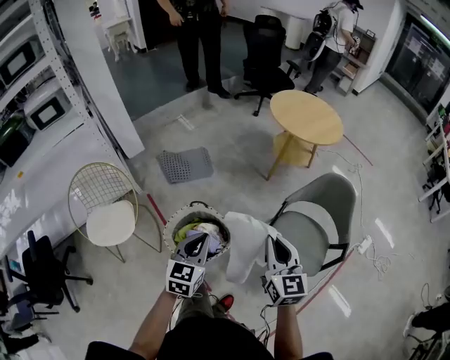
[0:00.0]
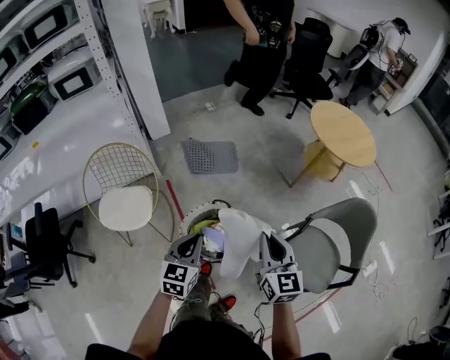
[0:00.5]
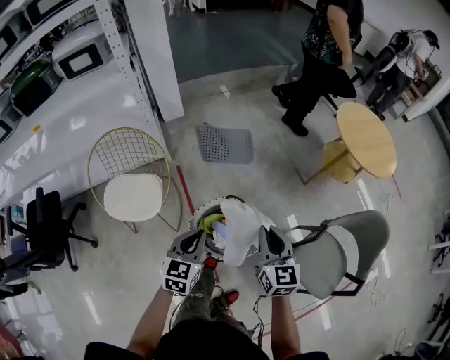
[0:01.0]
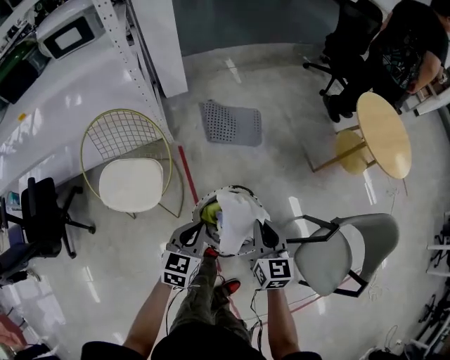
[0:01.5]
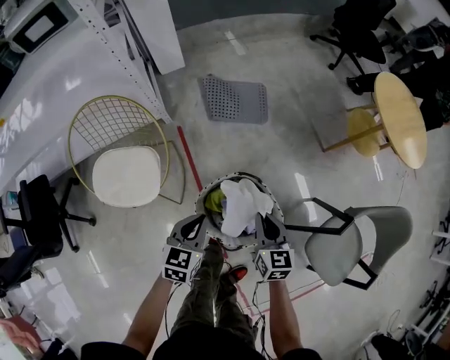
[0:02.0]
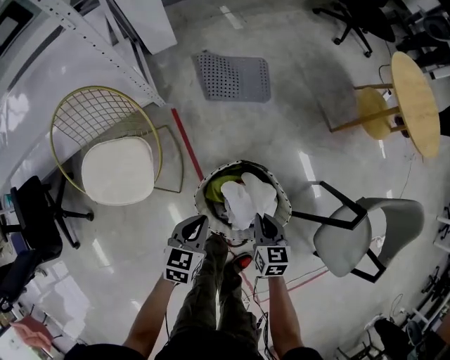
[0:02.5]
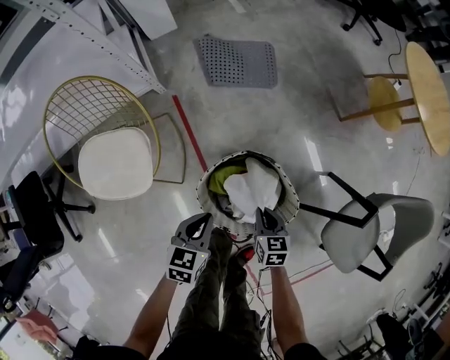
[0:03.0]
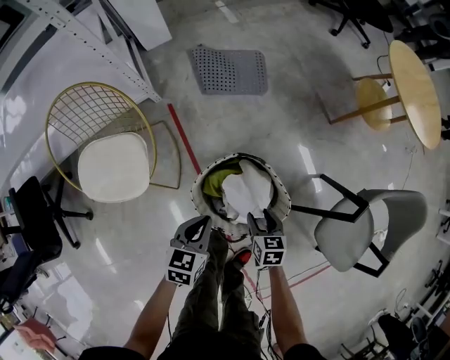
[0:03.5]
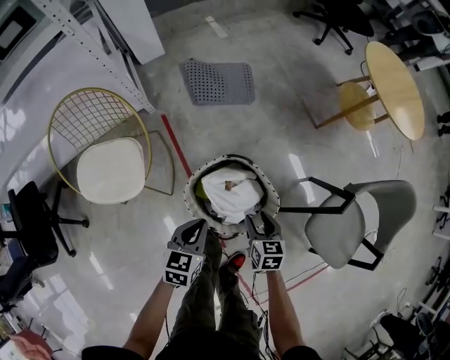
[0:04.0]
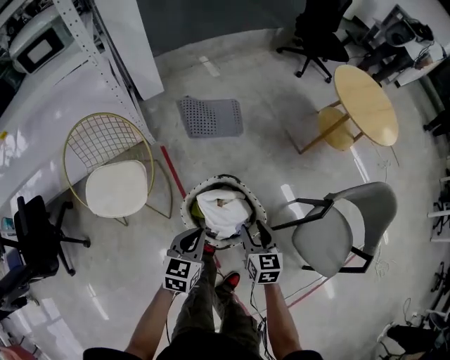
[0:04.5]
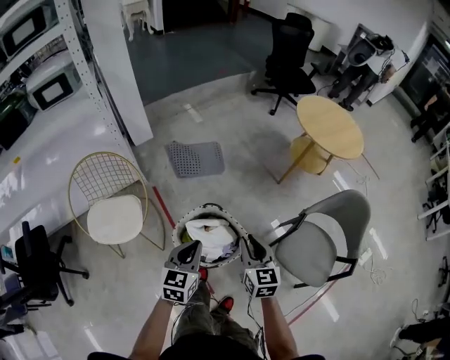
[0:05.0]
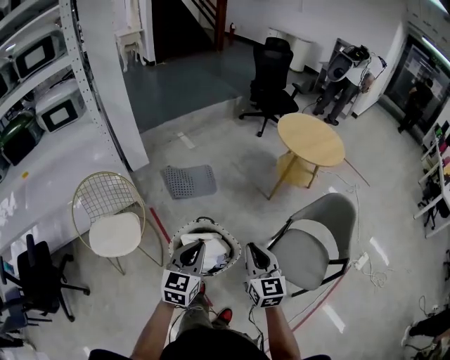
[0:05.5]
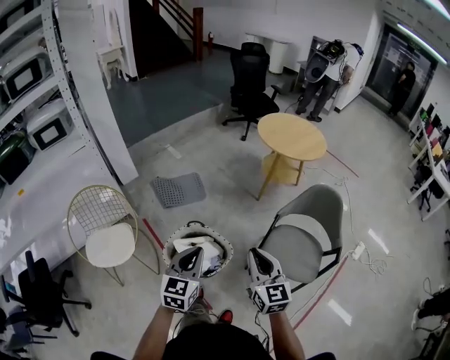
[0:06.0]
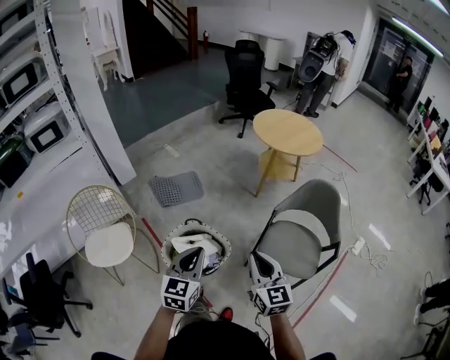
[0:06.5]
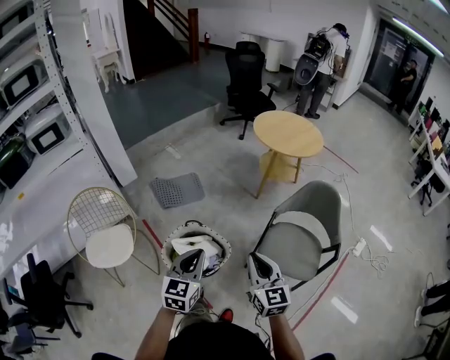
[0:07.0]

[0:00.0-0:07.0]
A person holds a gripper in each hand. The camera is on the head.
0:00.0 to 0:02.0: The left gripper shifts about 35 cm to the left, downward and forward, and turns by approximately 20 degrees, while the right gripper heads downward, to the left and forward, covering about 40 cm, and rotates about 30 degrees.
0:02.0 to 0:03.5: The left gripper shifts approximately 10 cm downward, while the right gripper is displaced downward by about 20 cm, turns by some 20 degrees, and opens its fingers.
0:03.5 to 0:05.0: Both grippers move upward, about 30 cm. The right gripper tips its fingers upward by approximately 30 degrees, and closes, while the left gripper changes its angle by roughly 20 degrees.
0:05.0 to 0:07.0: The right gripper goes about 20 cm to the right, backward and upward. The left gripper is displaced to the right, upward and backward by approximately 20 cm.

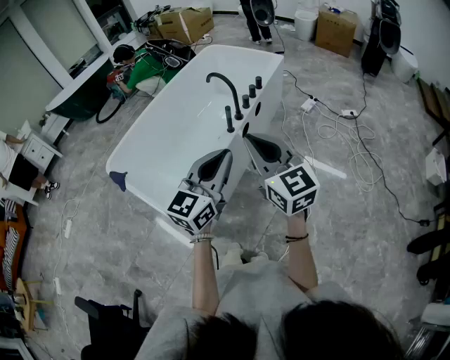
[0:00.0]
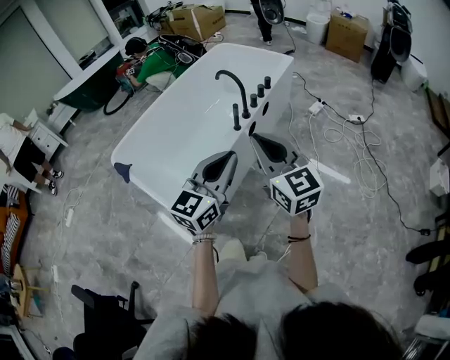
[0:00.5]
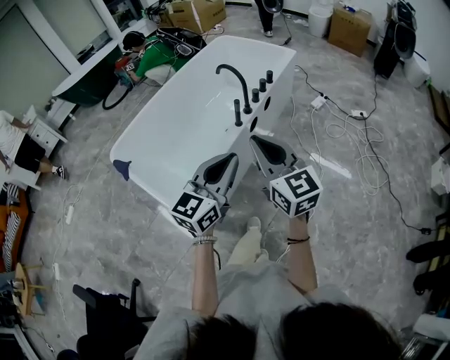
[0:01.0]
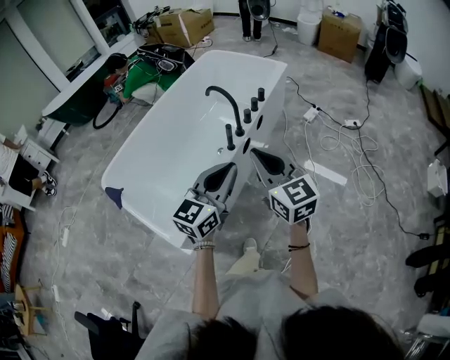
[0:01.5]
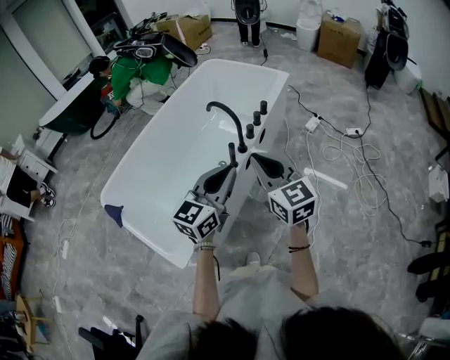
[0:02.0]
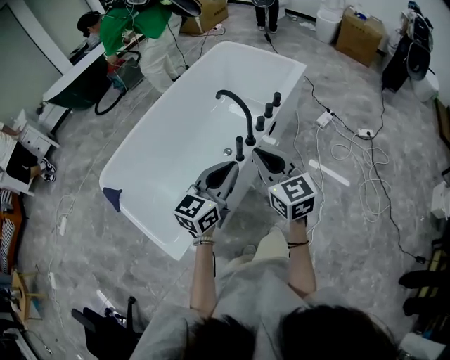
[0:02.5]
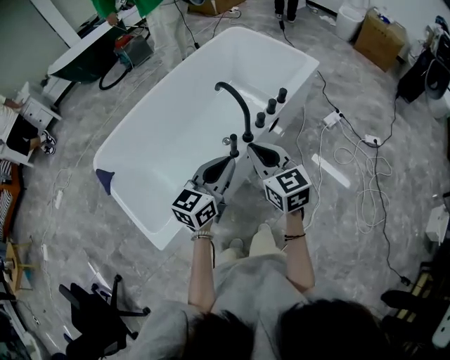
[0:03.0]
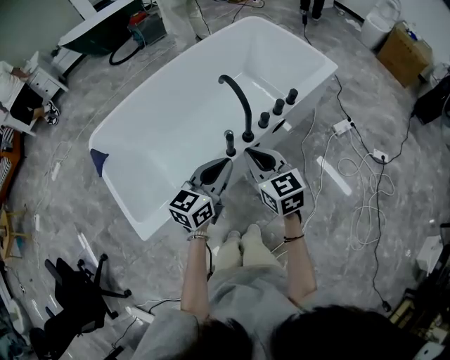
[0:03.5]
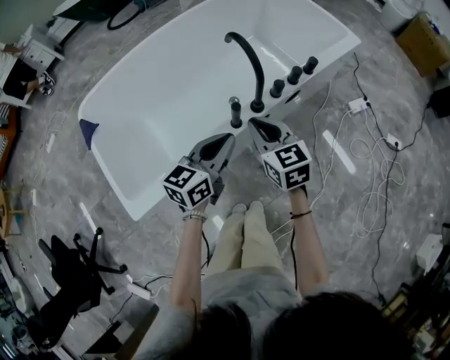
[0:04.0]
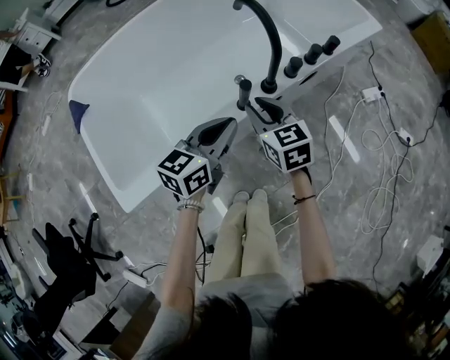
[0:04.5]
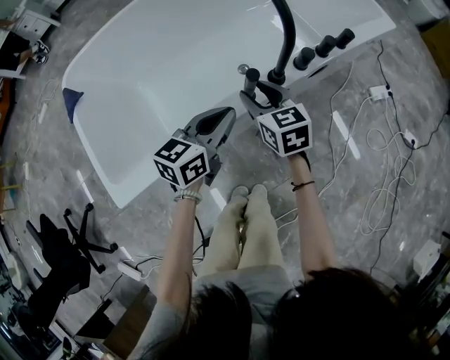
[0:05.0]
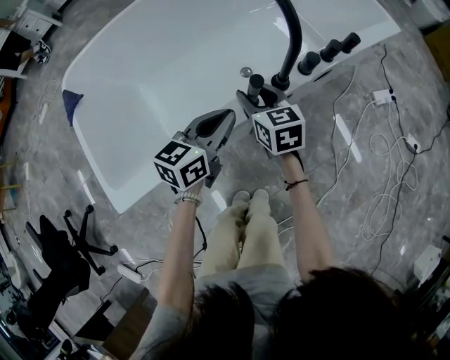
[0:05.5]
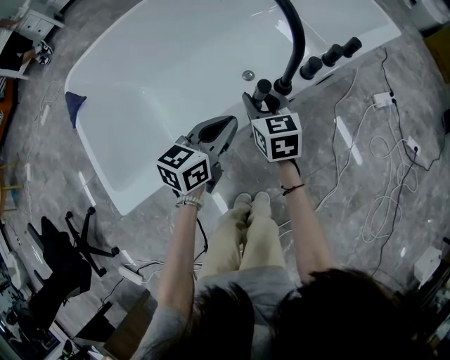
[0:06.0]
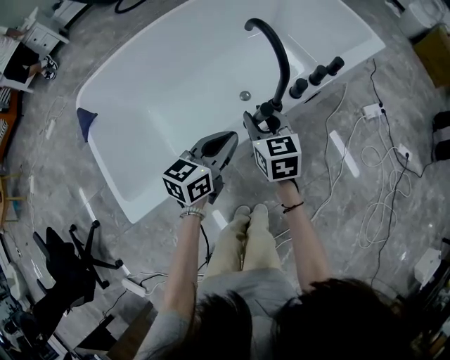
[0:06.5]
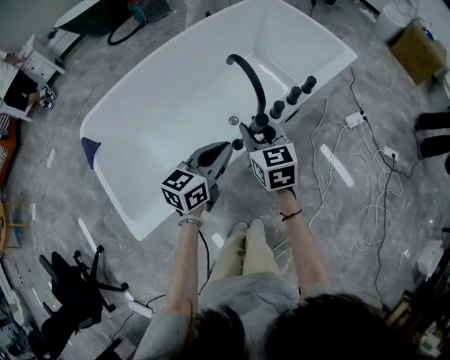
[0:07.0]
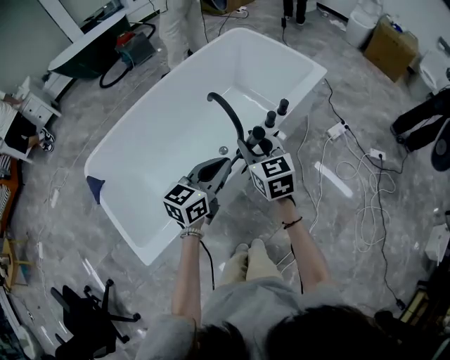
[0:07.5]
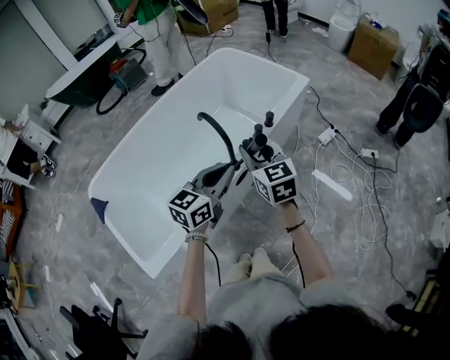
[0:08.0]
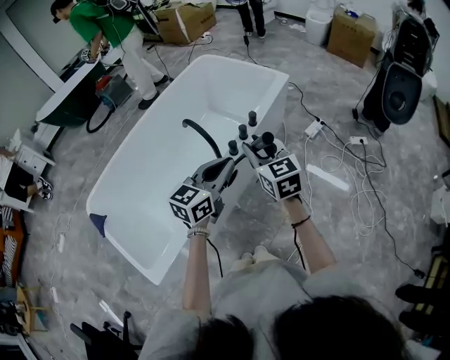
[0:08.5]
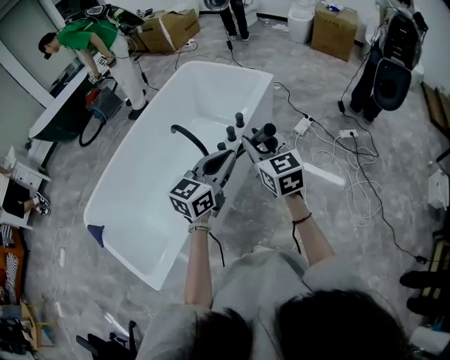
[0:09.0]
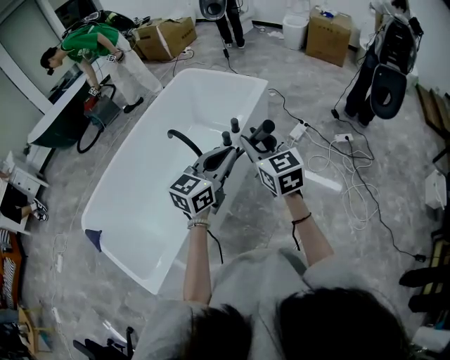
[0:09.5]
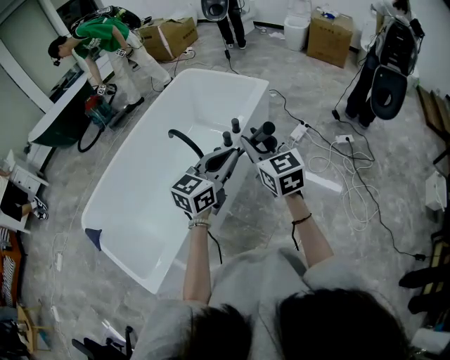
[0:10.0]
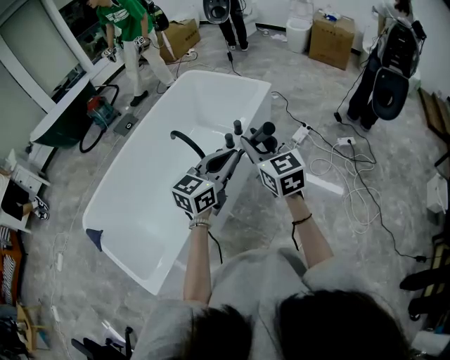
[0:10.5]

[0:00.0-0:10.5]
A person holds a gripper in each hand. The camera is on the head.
0:00.0 to 0:02.0: Both grippers travel together forward, about 20 cm.
0:02.0 to 0:04.0: The two grippers go roughly 30 cm downward and forward. The right gripper rotates roughly 30 degrees; the left gripper rotates roughly 30 degrees.
0:04.0 to 0:06.5: The left gripper heads downward, covering about 5 cm. Meanwhile the right gripper goes about 10 cm downward and forward, and opens.
0:06.5 to 0:08.5: The two grippers go approximately 30 cm upward and to the right. The left gripper swivels about 30 degrees.
0:08.5 to 0:10.5: The left gripper goes roughly 5 cm to the right; the right gripper travels upward and to the right by roughly 10 cm.

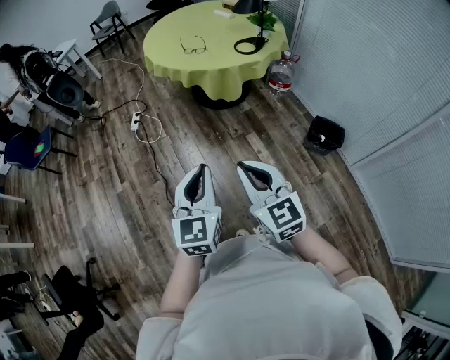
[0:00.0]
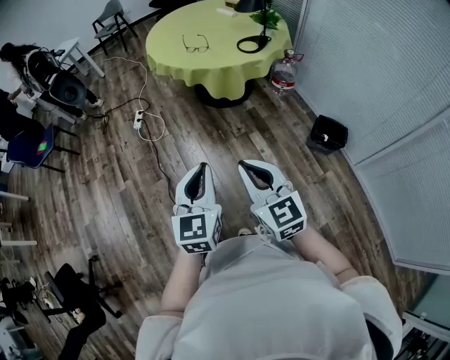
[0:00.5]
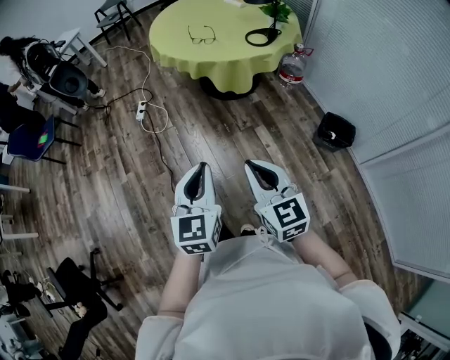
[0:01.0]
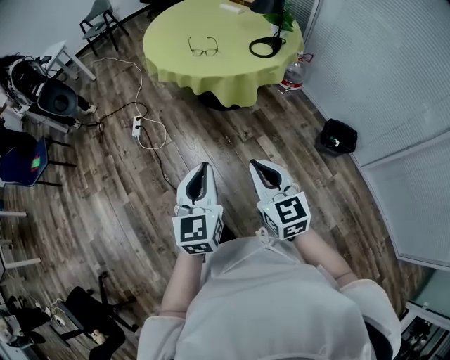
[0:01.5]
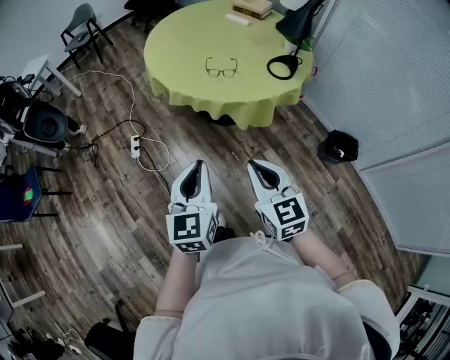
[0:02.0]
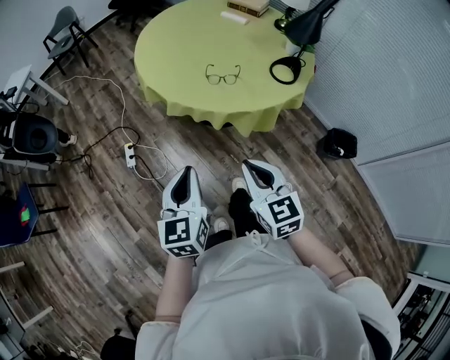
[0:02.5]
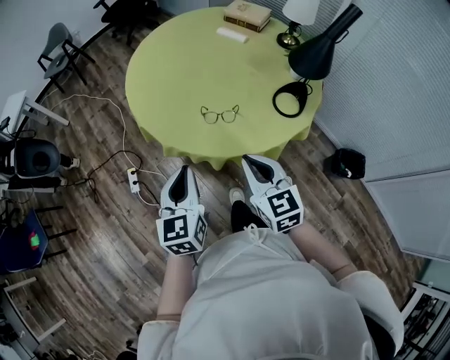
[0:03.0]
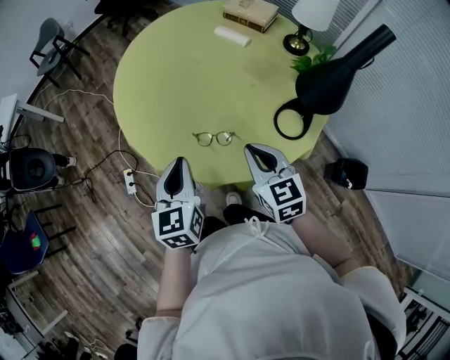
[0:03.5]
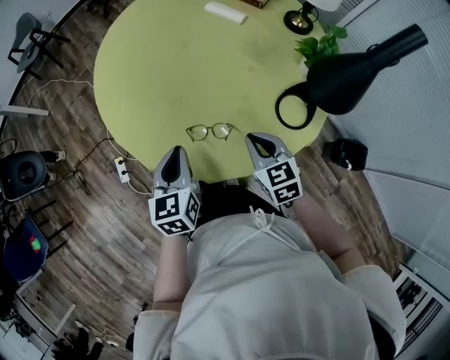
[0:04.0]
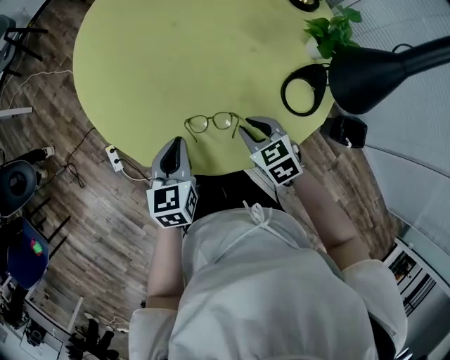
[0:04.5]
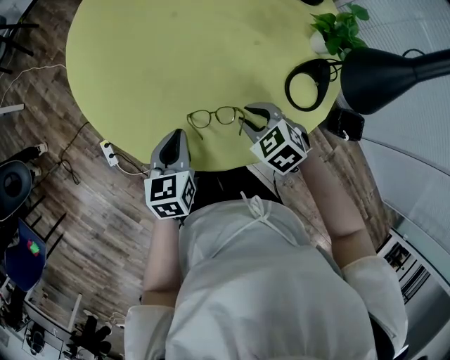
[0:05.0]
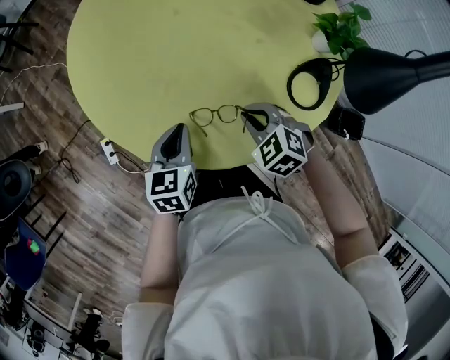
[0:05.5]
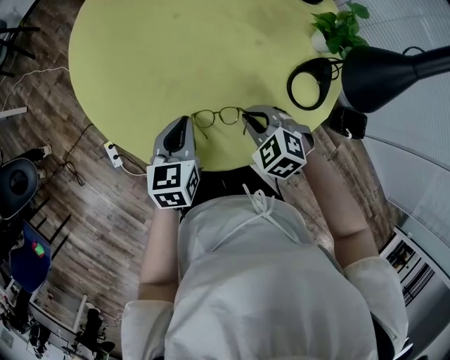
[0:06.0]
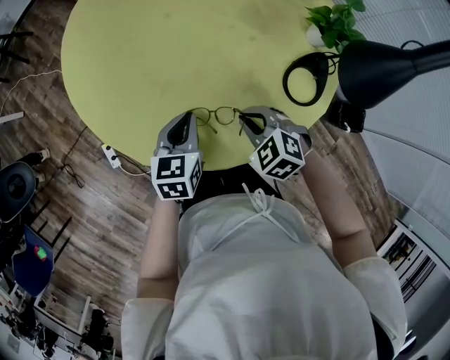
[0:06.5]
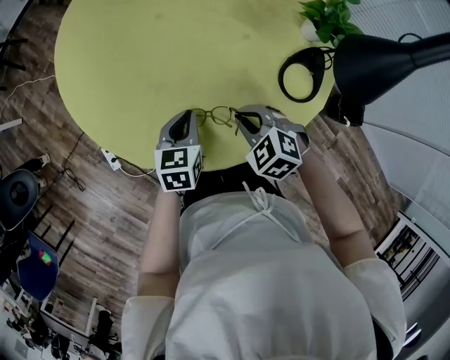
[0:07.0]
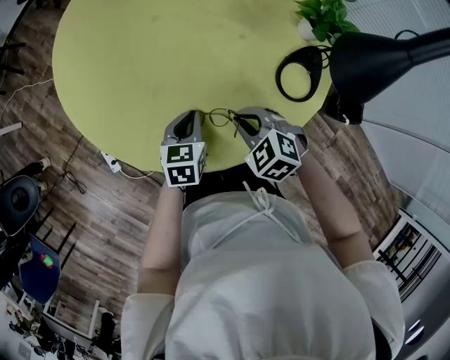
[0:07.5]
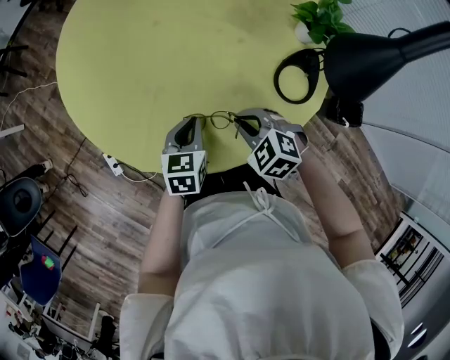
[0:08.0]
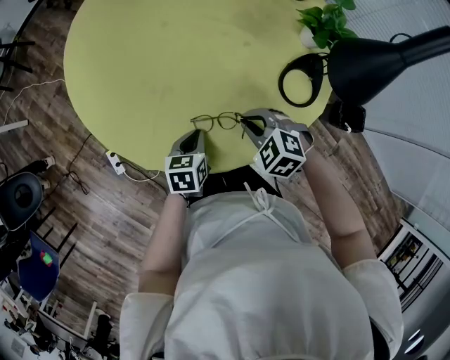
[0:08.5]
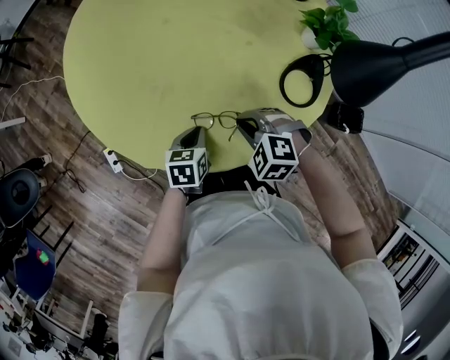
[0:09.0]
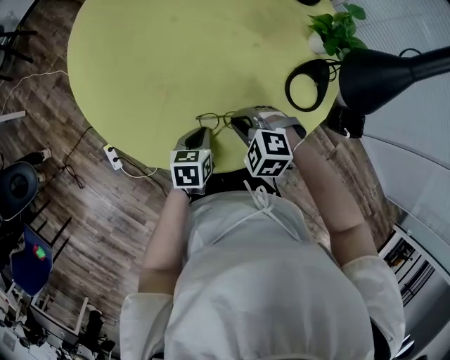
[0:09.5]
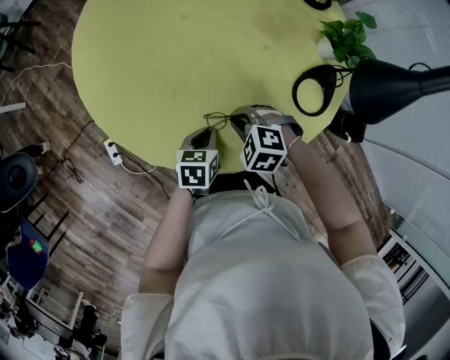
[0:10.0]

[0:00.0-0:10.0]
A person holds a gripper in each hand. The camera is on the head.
0:00.0 to 0:02.0: Both grippers are carried forward and to the left, roughly 40 cm.
0:02.0 to 0:04.0: Both grippers are carried forward, some 50 cm. The right gripper swivels some 20 degrees.
0:04.0 to 0:06.0: The left gripper goes approximately 10 cm downward and forward. The right gripper moves downward, approximately 5 cm, turns by roughly 40 degrees, and opens, then closes again.
0:06.0 to 0:08.0: The left gripper goes approximately 10 cm downward and to the right.
0:08.0 to 0:10.0: The left gripper moves roughly 5 cm. The right gripper is displaced to the left by some 5 cm.
